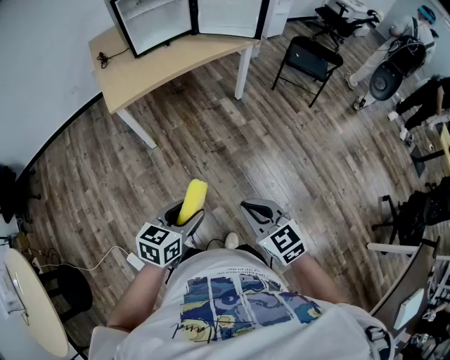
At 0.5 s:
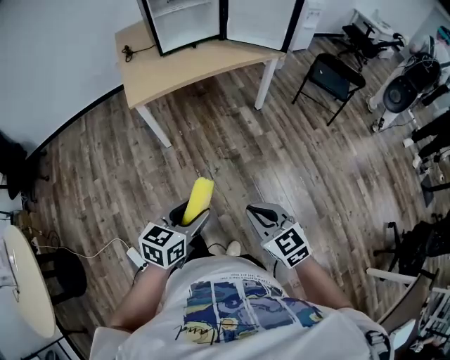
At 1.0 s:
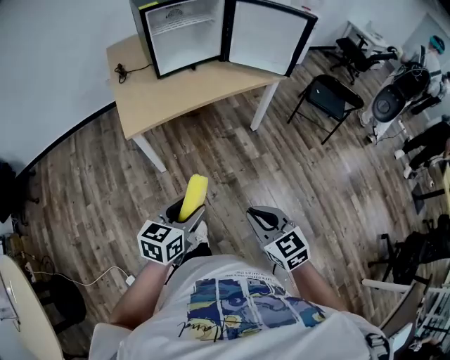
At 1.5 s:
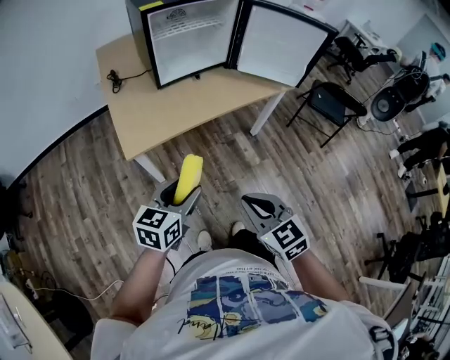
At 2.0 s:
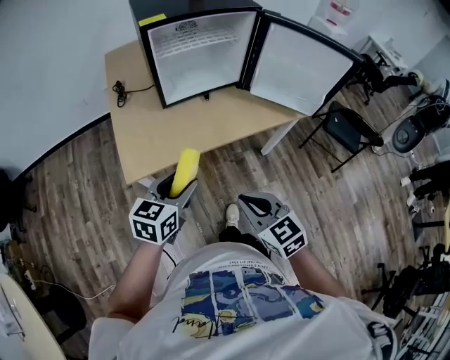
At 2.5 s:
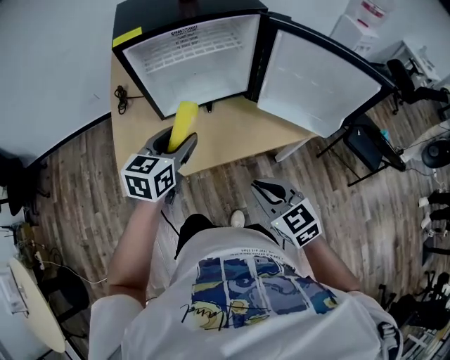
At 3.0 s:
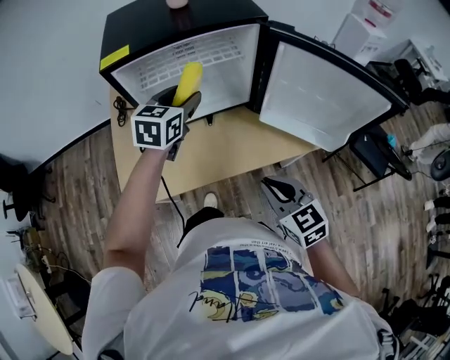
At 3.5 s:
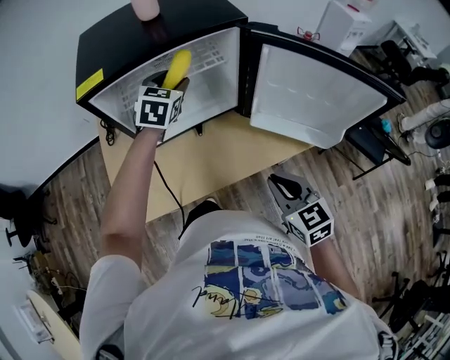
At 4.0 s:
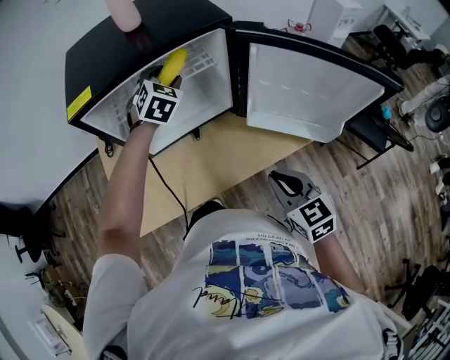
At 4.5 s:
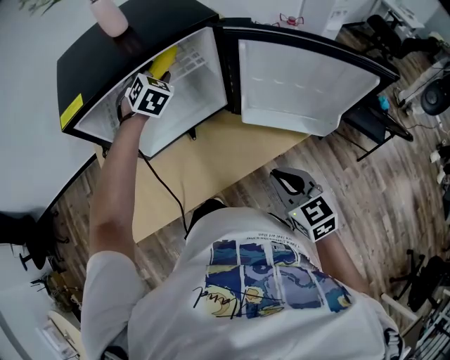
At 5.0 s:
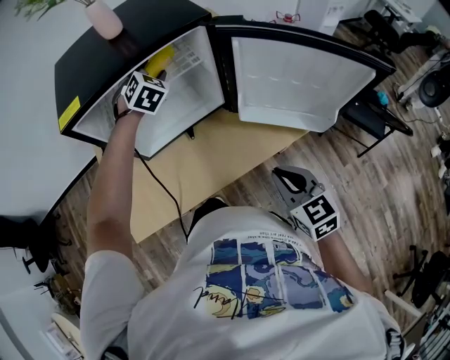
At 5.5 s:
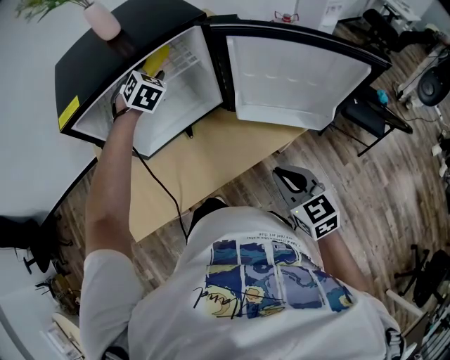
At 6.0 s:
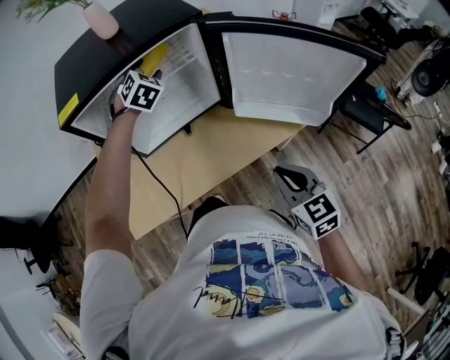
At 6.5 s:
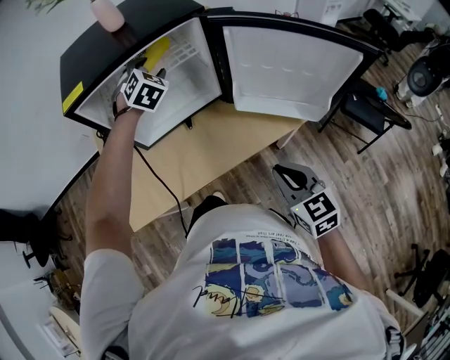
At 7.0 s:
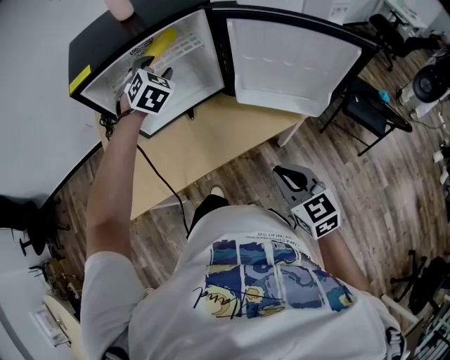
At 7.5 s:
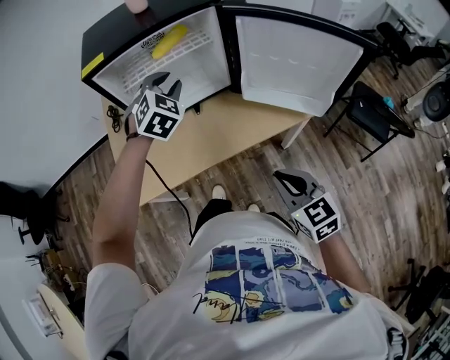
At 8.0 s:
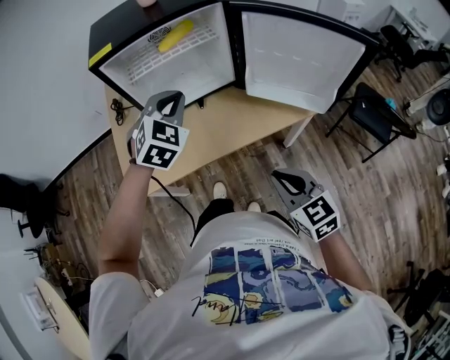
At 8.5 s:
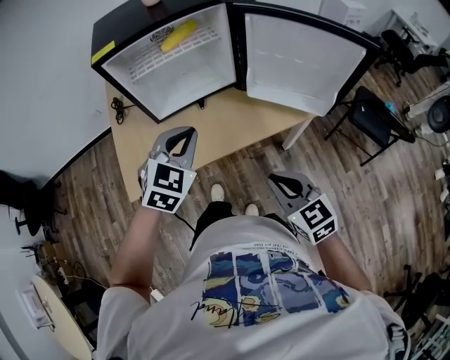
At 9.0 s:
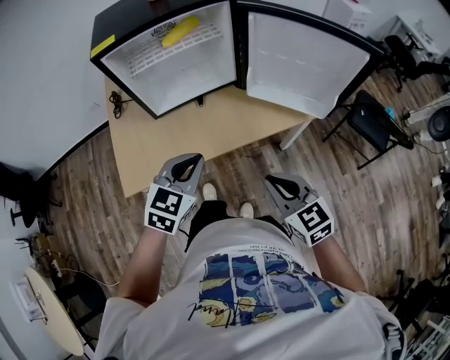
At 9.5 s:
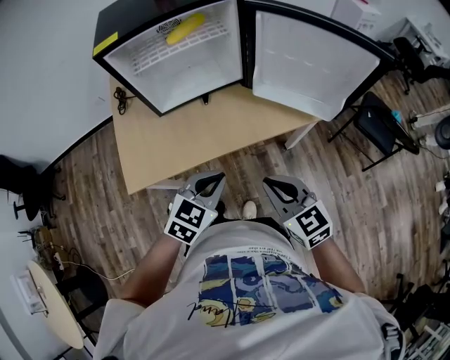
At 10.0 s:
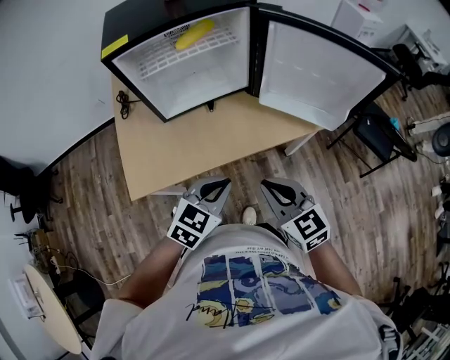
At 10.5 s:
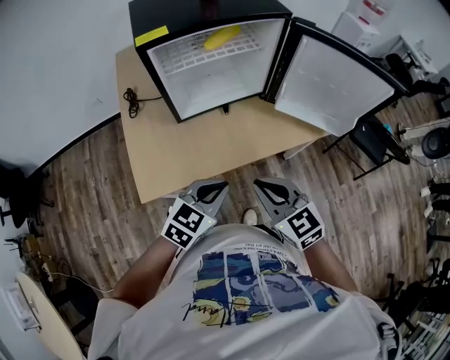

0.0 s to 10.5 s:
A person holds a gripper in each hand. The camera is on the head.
0.0 to 2.0 s: The two grippers travel together, forward, approximately 50 cm.
2.0 to 4.0 s: The left gripper shifts approximately 50 cm forward, and rotates around the line of its fingers by about 40 degrees, clockwise from behind; the right gripper travels forward and to the right by some 35 cm.
4.0 to 6.5 s: The right gripper heads backward, covering approximately 5 cm.
6.5 to 8.5 s: The right gripper moves backward, about 10 cm. The left gripper shifts some 35 cm backward, turns by roughly 20 degrees, and closes.
8.5 to 10.5 s: The left gripper shifts some 10 cm backward, downward and to the left, and changes its angle by some 30 degrees. Meanwhile the right gripper travels to the left by approximately 15 cm.

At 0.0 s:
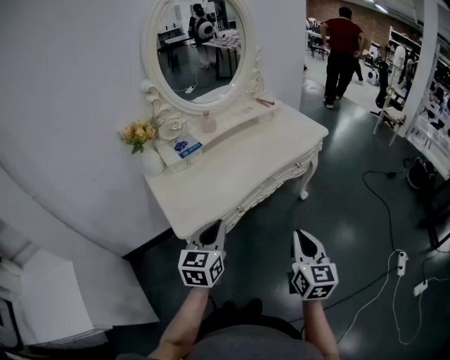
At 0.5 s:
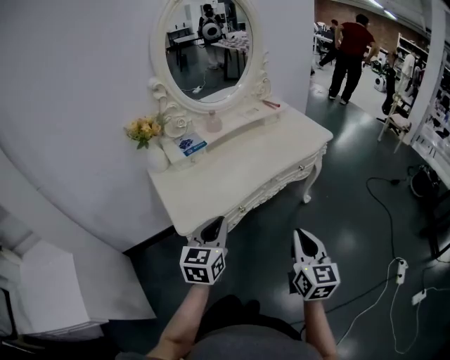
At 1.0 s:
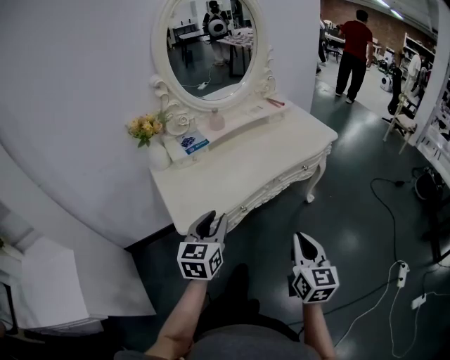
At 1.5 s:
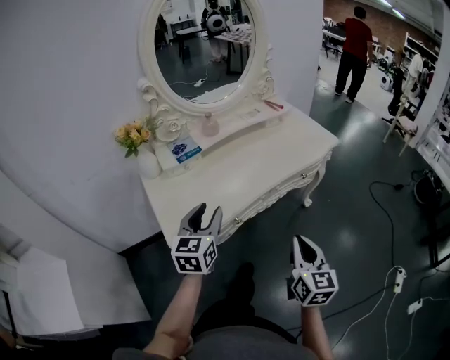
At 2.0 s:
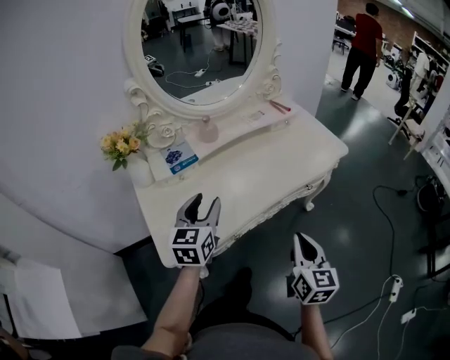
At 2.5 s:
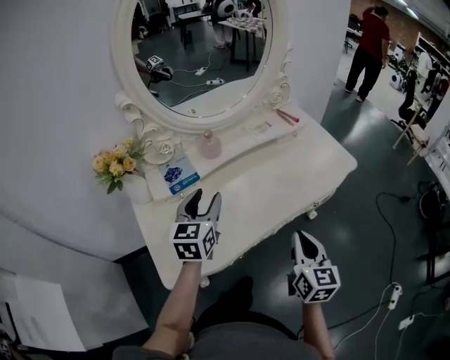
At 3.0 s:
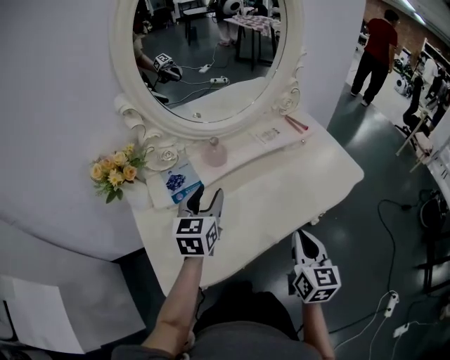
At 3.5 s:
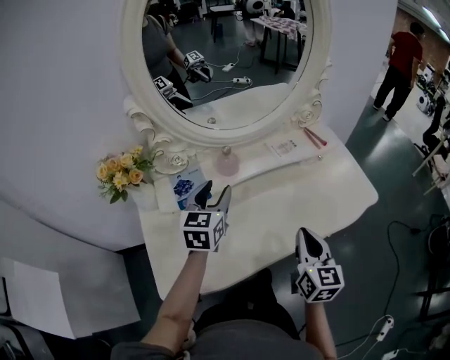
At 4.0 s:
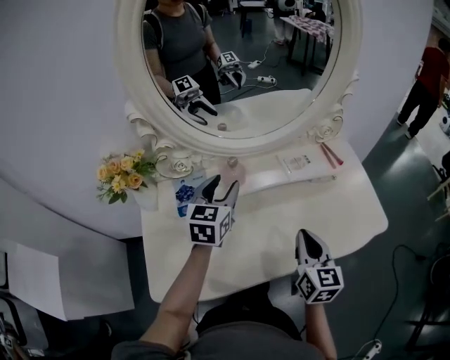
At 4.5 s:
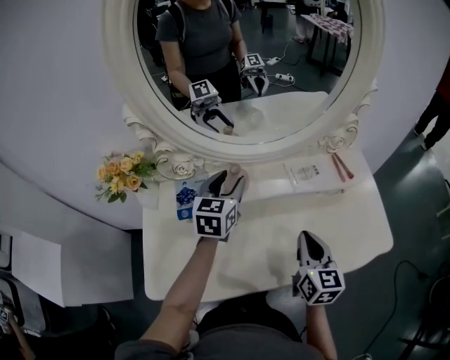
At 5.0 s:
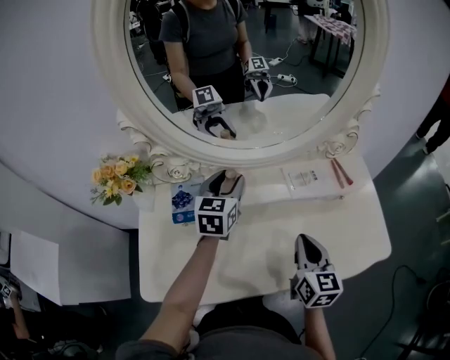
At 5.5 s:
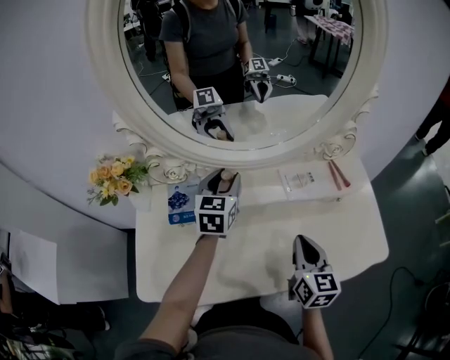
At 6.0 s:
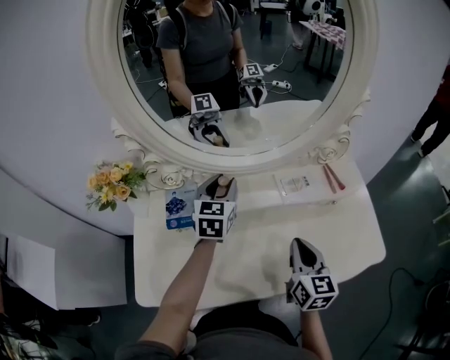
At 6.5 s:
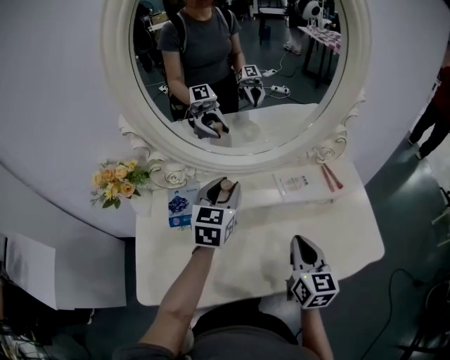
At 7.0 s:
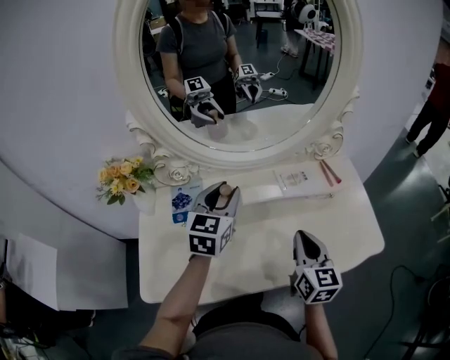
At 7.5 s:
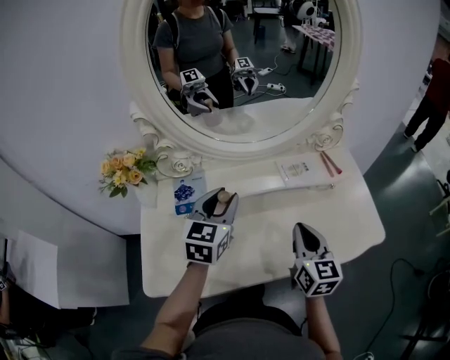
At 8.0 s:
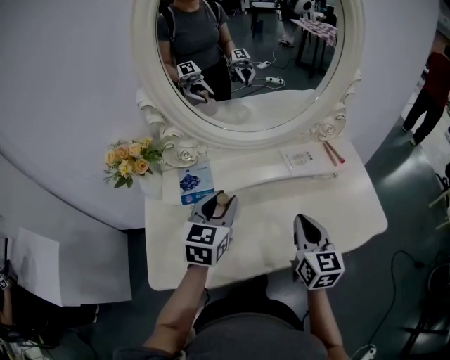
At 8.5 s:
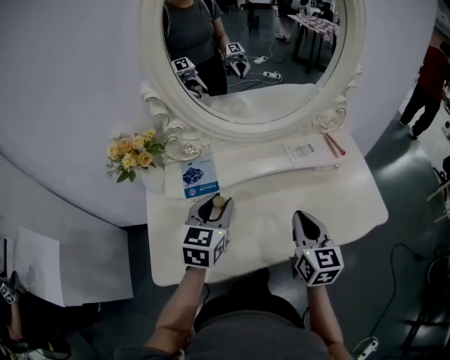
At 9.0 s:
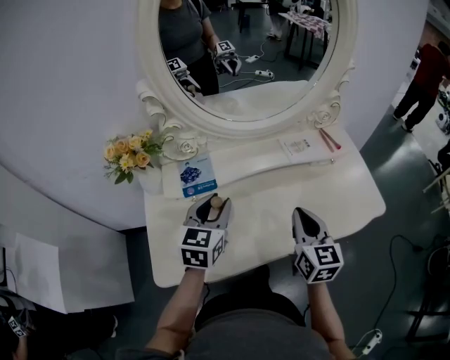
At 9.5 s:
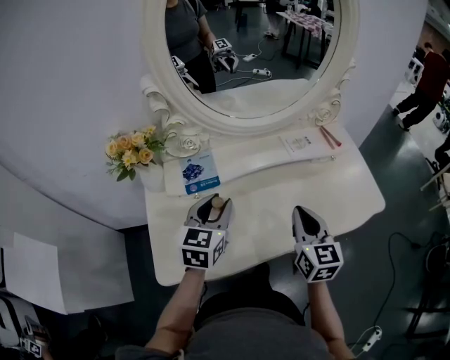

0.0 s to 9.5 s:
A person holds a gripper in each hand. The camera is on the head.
0.0 to 2.0 s: The grippers both shift forward by some 20 cm. The left gripper opens.
2.0 to 4.0 s: The two grippers go some 30 cm forward.
4.0 to 5.5 s: The grippers both shift forward by some 5 cm.
5.5 to 7.5 s: The right gripper ends up about 5 cm from where it was, while the left gripper heads backward and upward, covering roughly 15 cm.
7.5 to 9.5 s: The left gripper shifts about 10 cm backward and to the left, while the right gripper heads to the left, covering approximately 5 cm.

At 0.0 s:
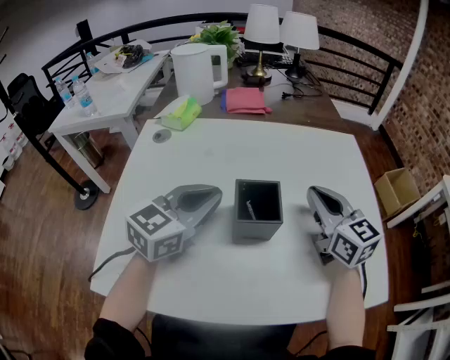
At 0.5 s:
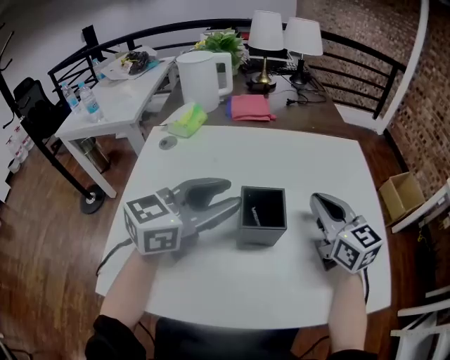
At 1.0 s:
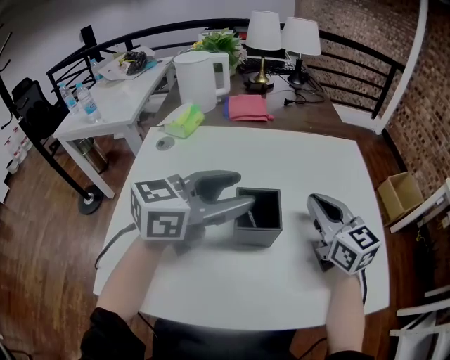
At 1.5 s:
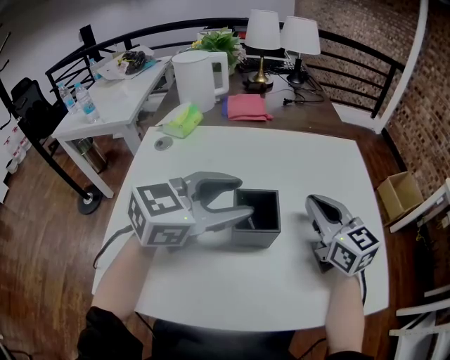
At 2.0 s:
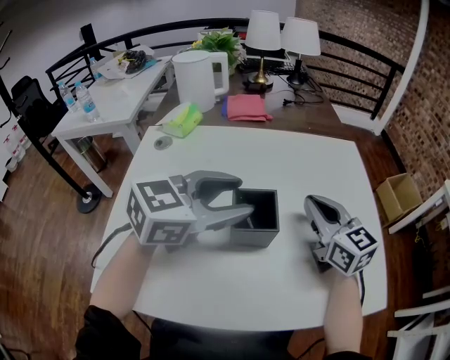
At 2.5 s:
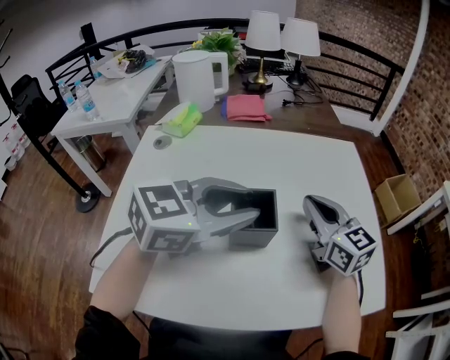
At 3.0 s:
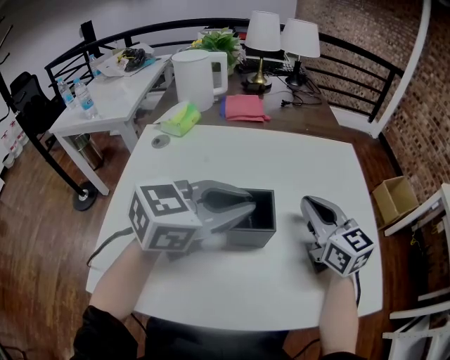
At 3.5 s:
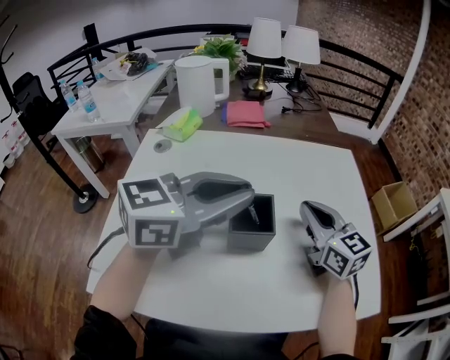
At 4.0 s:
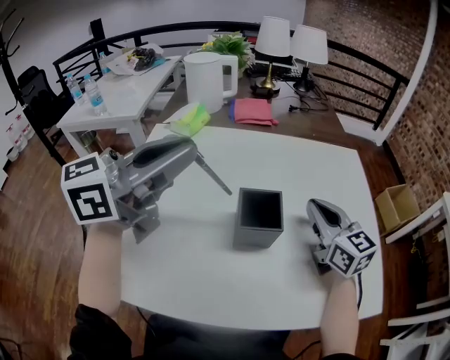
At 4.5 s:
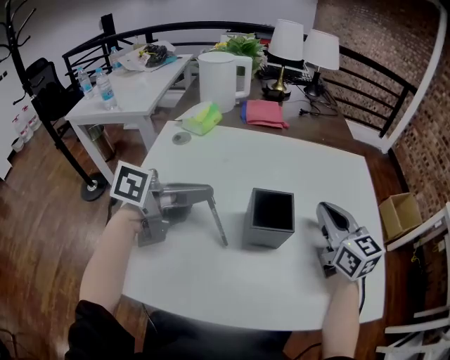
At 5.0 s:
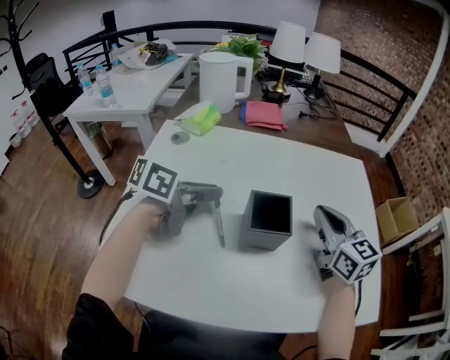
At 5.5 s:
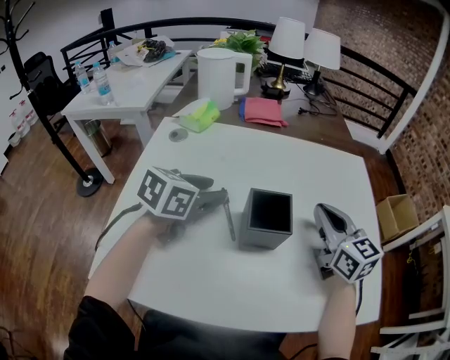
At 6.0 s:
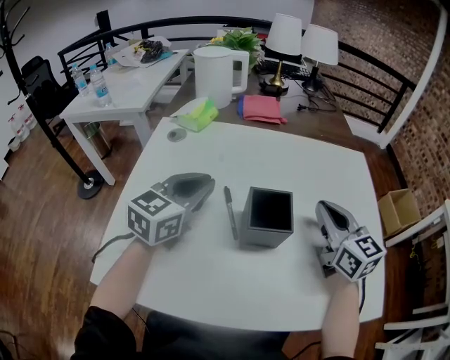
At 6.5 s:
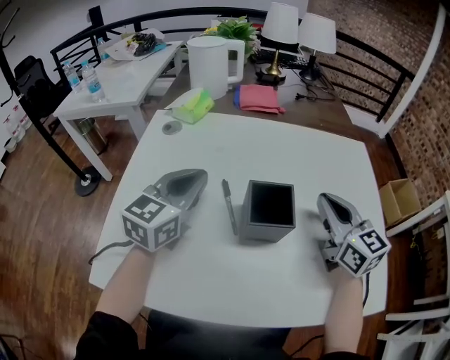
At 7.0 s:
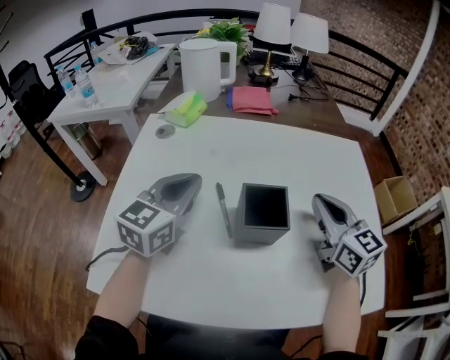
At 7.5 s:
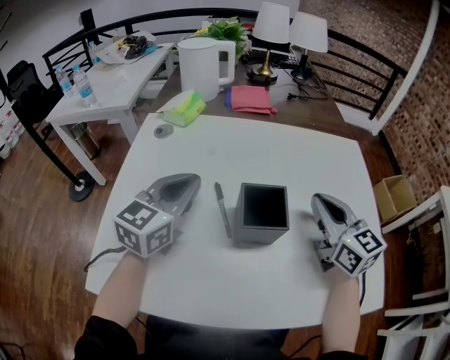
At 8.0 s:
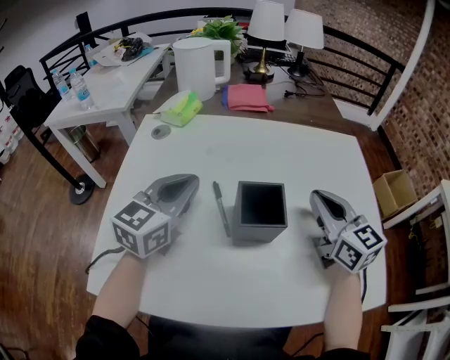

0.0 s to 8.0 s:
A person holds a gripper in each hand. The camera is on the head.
0.0 to 2.0 s: The left gripper goes some 10 cm to the right and upward, and opens its fingers.
2.0 to 4.0 s: The left gripper goes approximately 15 cm to the left and upward, turns by some 30 degrees, and closes up.
4.0 to 6.0 s: The left gripper goes approximately 15 cm downward, changes its angle by about 30 degrees, and opens, then closes again.
6.0 to 8.0 s: The grippers stay close to where they were, moving slightly.
